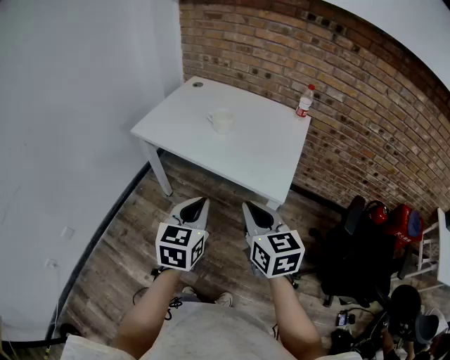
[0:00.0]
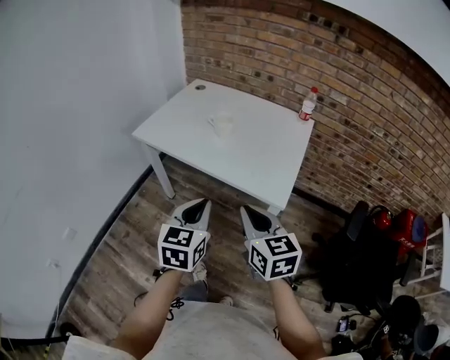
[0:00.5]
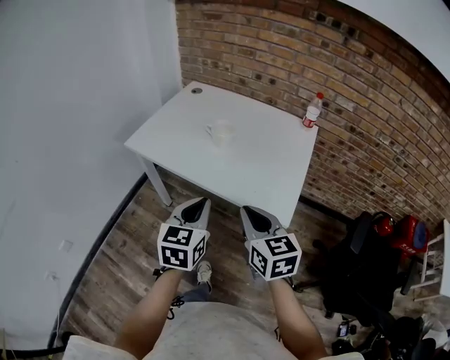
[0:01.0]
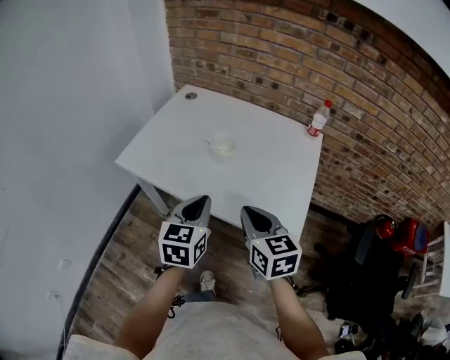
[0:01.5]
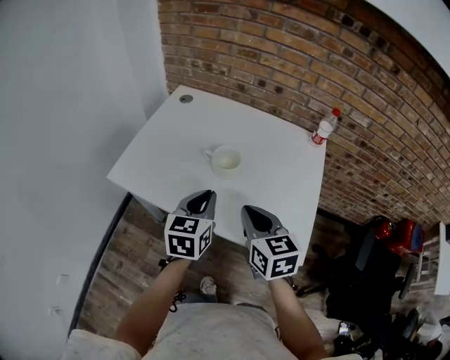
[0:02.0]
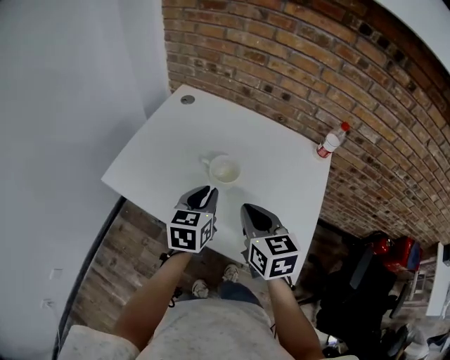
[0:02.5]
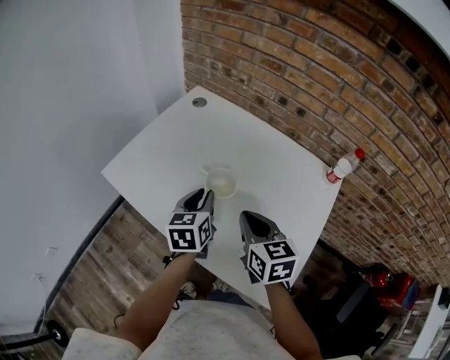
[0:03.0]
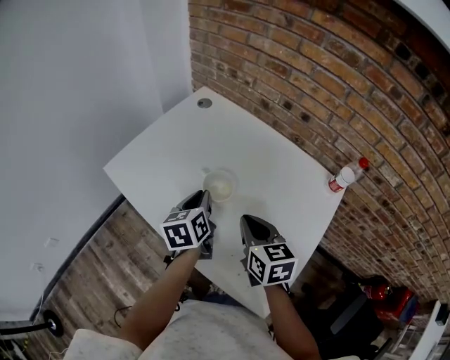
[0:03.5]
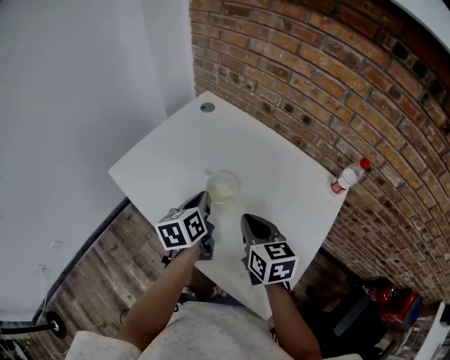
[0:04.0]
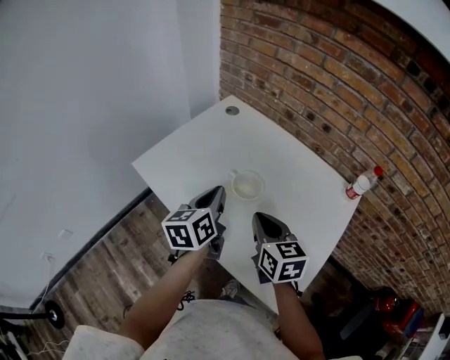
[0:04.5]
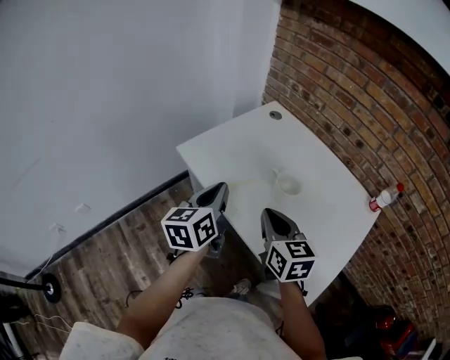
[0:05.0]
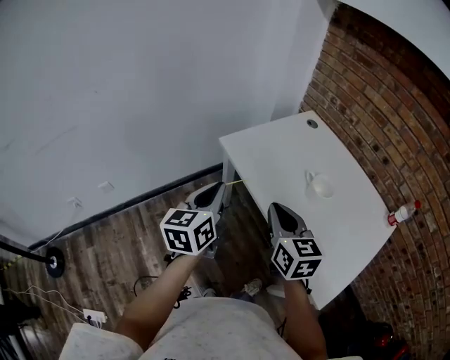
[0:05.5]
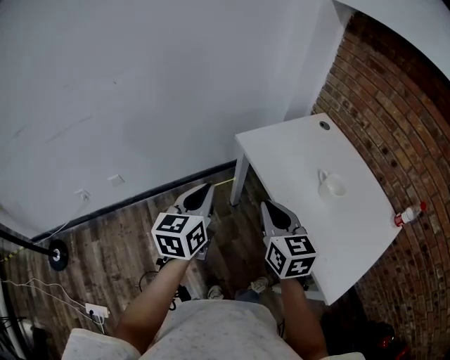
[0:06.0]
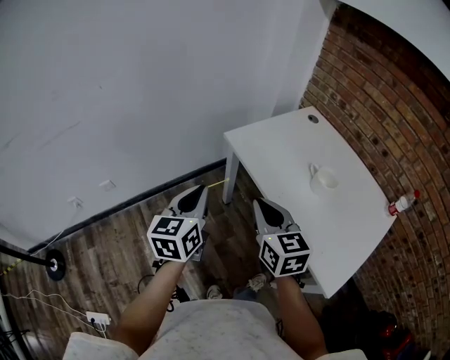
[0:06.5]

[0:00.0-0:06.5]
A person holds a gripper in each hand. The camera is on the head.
0:00.0 to 0:02.0: The grippers both shift forward by about 30 cm.
0:02.0 to 0:04.5: The grippers both shift forward by about 10 cm. The left gripper turns by approximately 30 degrees.
0:04.5 to 0:06.5: The left gripper goes about 40 cm to the left and backward, and changes its angle by some 20 degrees. Meanwhile the right gripper is displaced to the left by roughly 30 cm, and turns by roughly 20 degrees.

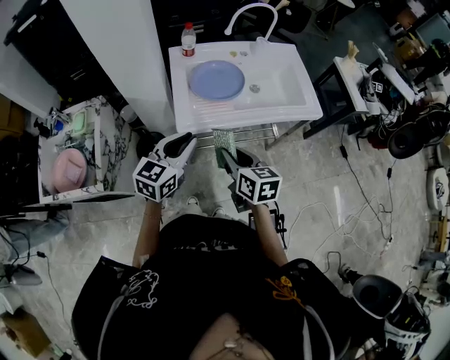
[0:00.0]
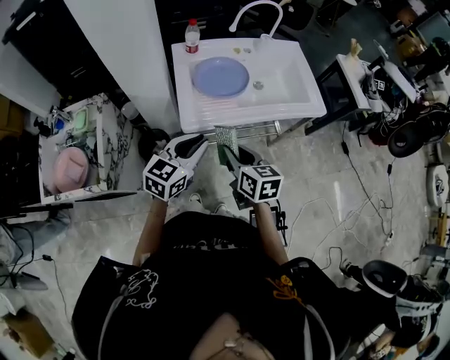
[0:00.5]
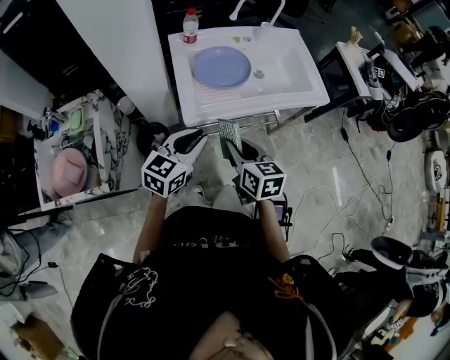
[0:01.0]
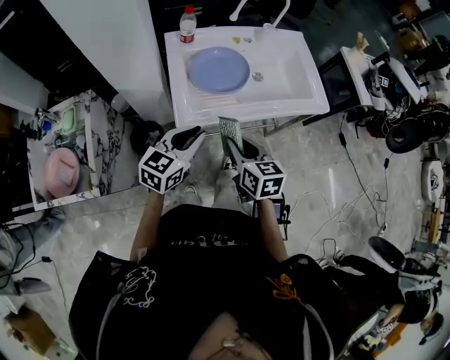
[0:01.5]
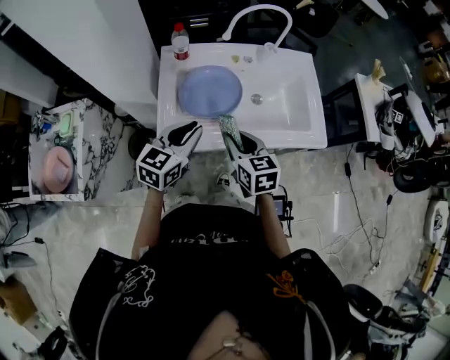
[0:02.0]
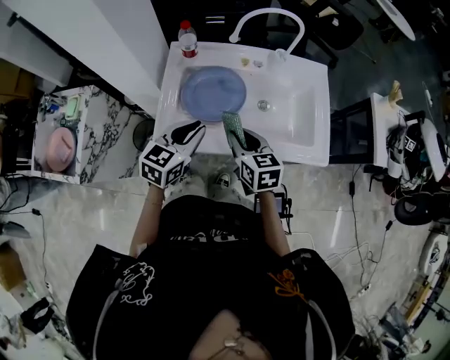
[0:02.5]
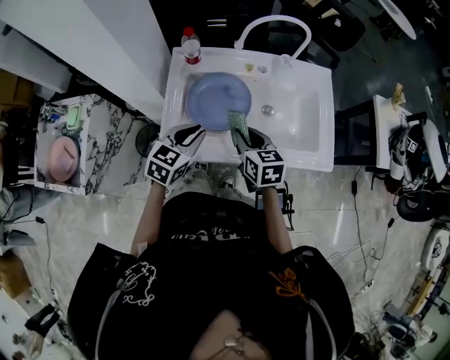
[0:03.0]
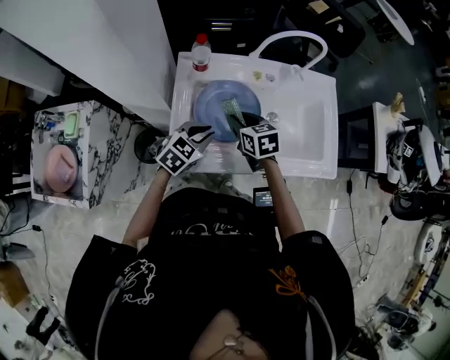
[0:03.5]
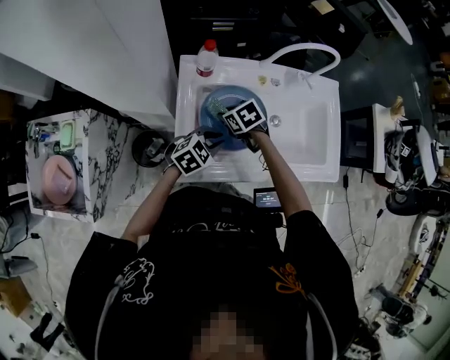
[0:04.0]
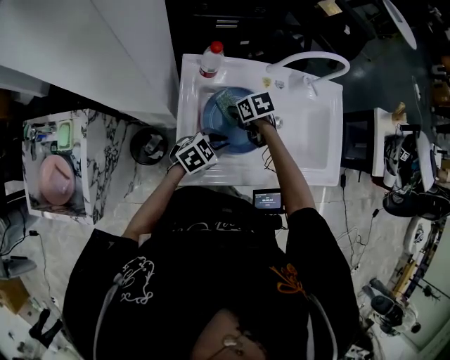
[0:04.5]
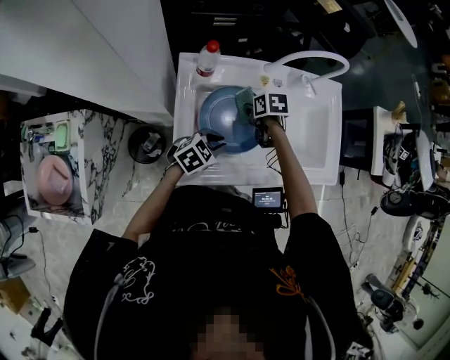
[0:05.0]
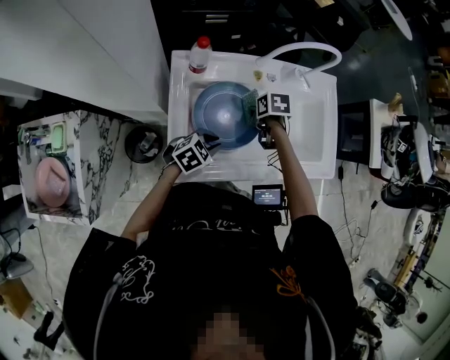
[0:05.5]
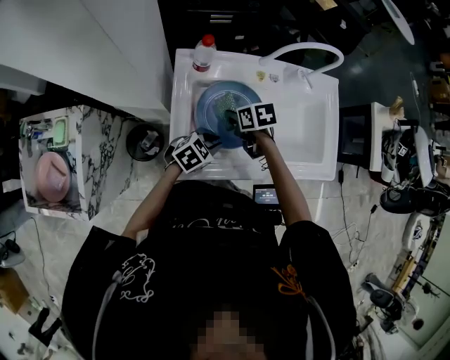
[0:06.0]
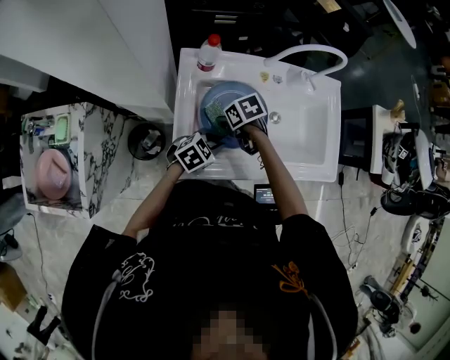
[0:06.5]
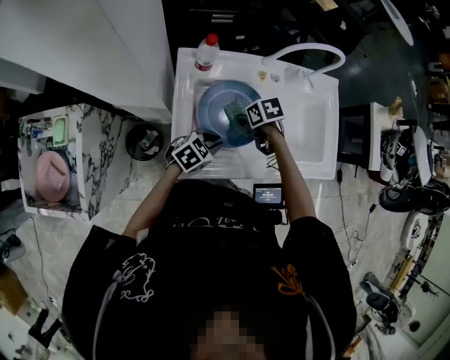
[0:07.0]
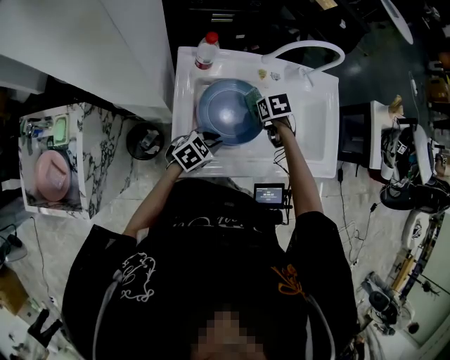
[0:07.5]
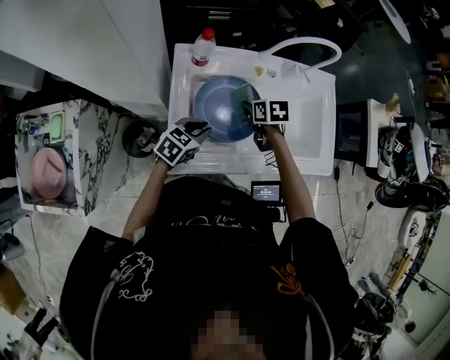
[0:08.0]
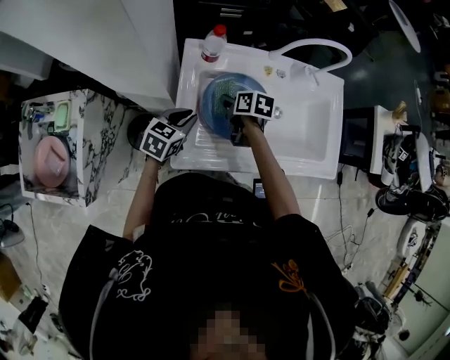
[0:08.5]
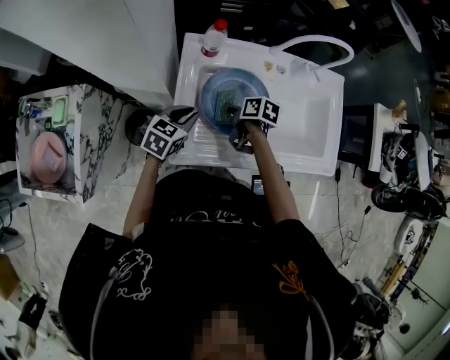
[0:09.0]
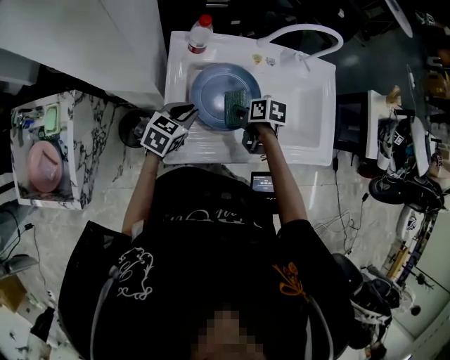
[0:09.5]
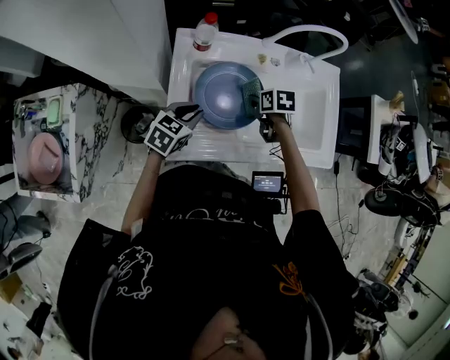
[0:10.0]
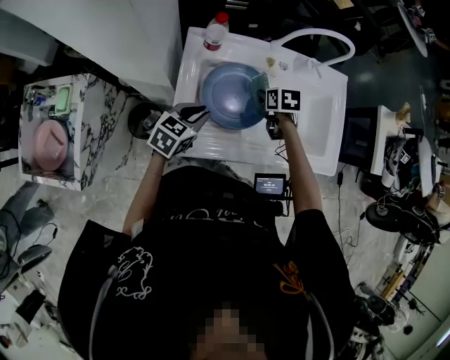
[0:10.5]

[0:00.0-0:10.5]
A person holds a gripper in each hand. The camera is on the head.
0:00.0 to 0:02.0: Both grippers travel together forward, roughly 20 cm.
0:02.0 to 0:04.0: The right gripper moves forward, downward and to the left, about 30 cm, and swivels some 40 degrees; the left gripper moves downward and forward, roughly 20 cm, and rotates some 40 degrees.
0:06.5 to 0:08.5: The right gripper changes its angle by some 30 degrees. Meanwhile the left gripper ends up roughly 15 cm from where it was, and swivels approximately 30 degrees.
0:08.5 to 0:10.5: The left gripper is displaced to the right by some 5 cm, while the right gripper heads to the right, covering approximately 15 cm, and swivels about 20 degrees.

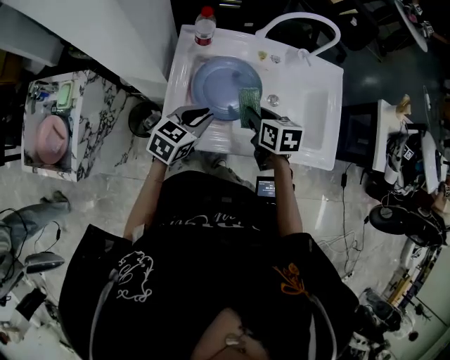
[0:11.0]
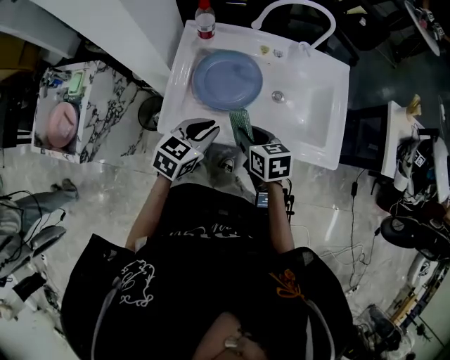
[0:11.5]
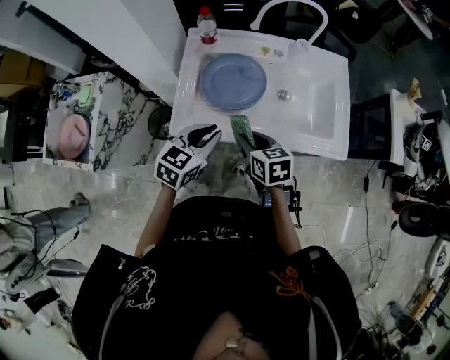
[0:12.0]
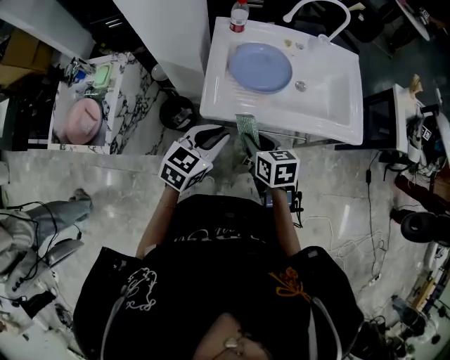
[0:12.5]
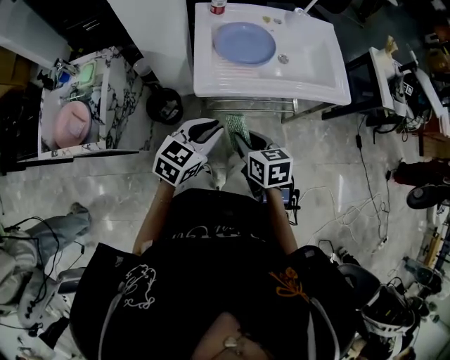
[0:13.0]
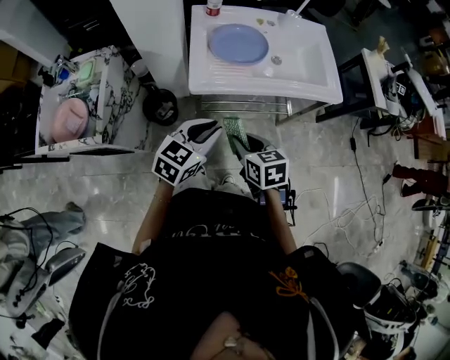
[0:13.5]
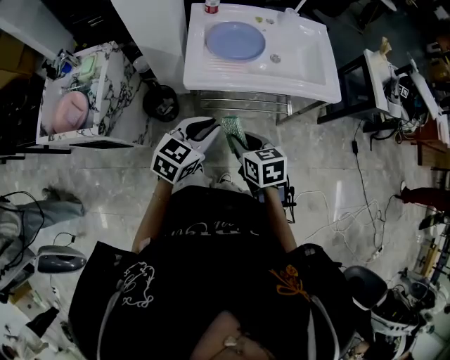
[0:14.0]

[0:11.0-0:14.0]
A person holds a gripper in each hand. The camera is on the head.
0:11.0 to 0:12.5: The left gripper moves backward, some 20 cm. Meanwhile the right gripper moves backward and to the left, about 25 cm.
0:12.5 to 0:14.0: The grippers both shift backward by roughly 15 cm.

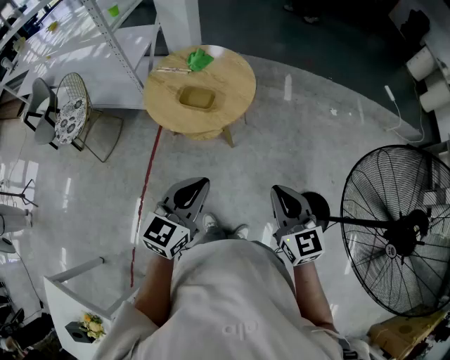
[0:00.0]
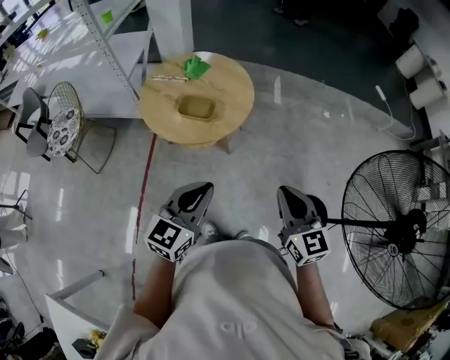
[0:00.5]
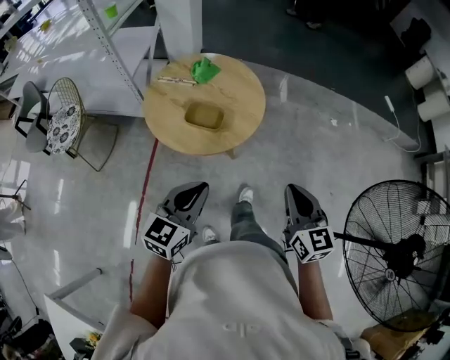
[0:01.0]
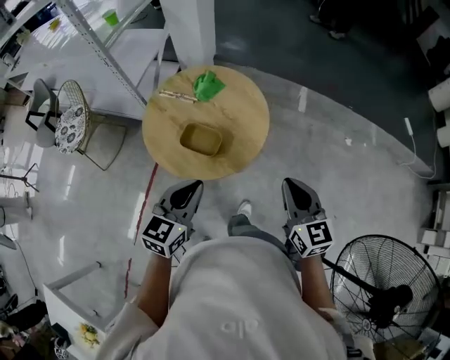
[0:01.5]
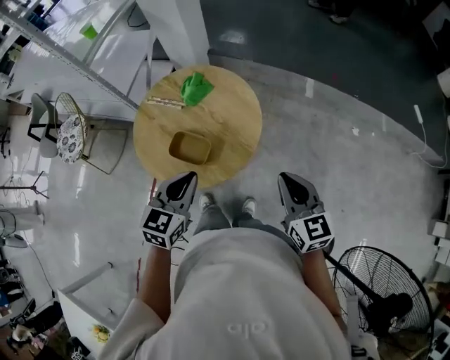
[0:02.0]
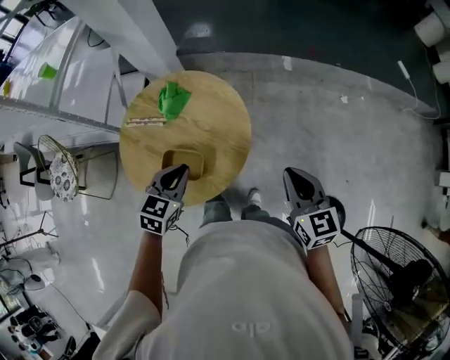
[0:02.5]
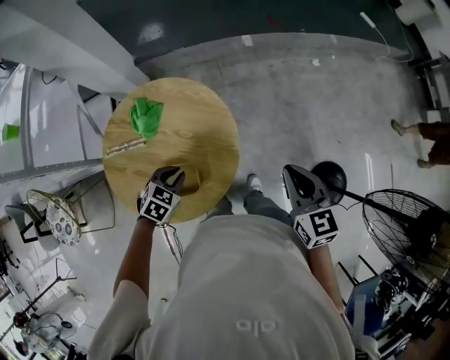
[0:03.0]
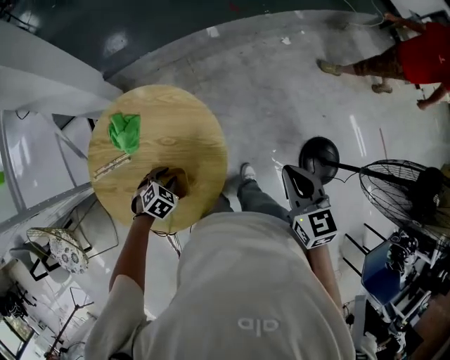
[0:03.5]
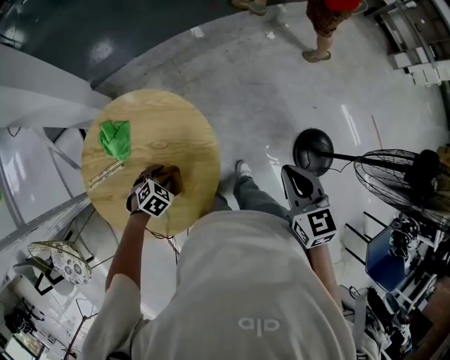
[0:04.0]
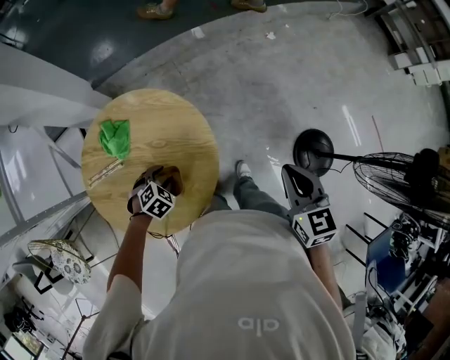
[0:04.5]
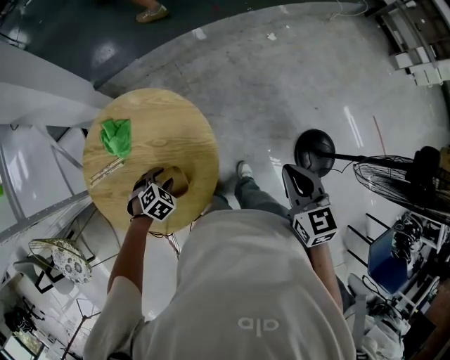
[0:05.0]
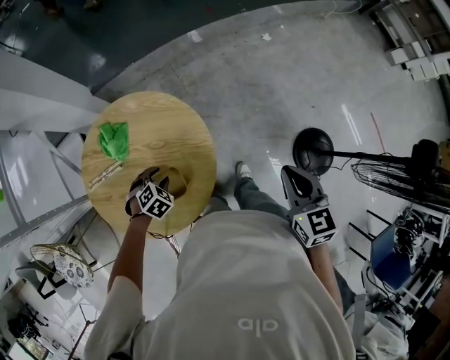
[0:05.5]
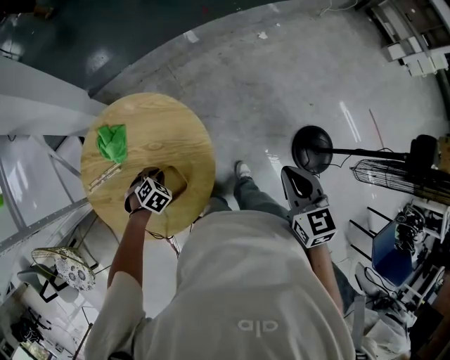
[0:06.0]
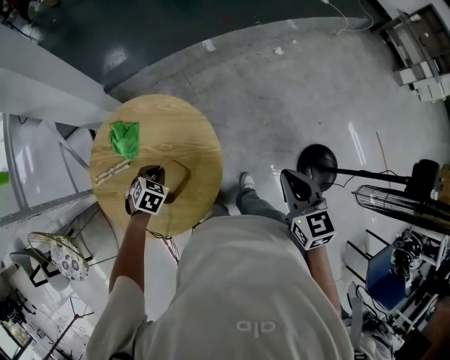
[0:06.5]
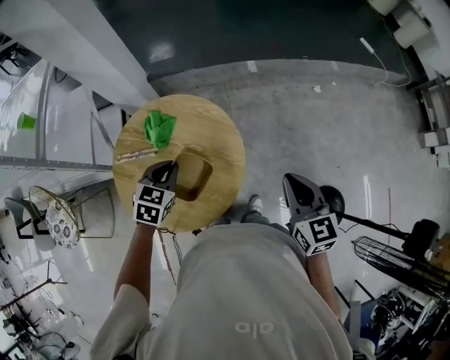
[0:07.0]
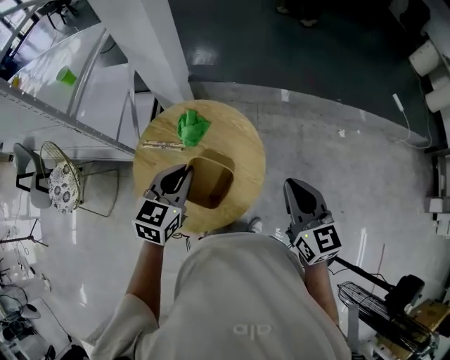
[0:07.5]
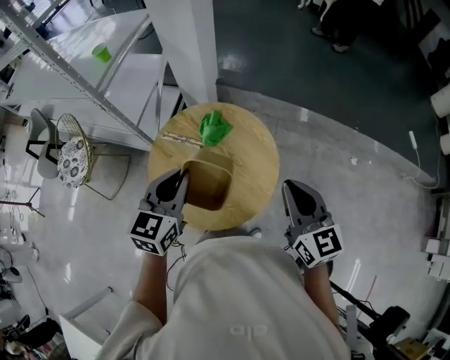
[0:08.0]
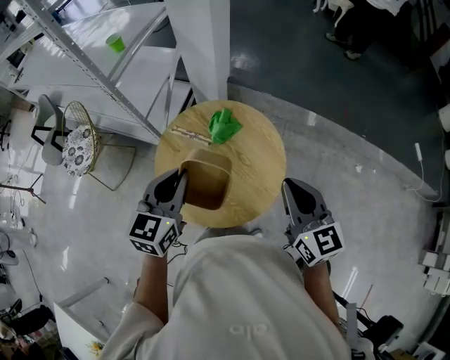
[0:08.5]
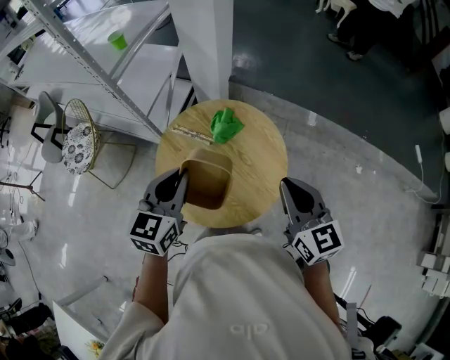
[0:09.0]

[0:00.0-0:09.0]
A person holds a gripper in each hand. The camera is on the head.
0:00.0 to 0:02.0: The two grippers go some 35 cm forward.
0:02.0 to 0:04.5: The right gripper ends up some 5 cm from where it was, and swivels about 40 degrees; the left gripper heads downward, covering roughly 30 cm, angles its fingers downward, by approximately 40 degrees, and opens up.
0:04.5 to 0:07.0: The right gripper travels to the left by roughly 5 cm. Meanwhile the left gripper moves upward, some 20 cm, rotates about 50 degrees, and closes.
0:07.0 to 0:09.0: The left gripper is displaced upward by roughly 15 cm, and swivels some 40 degrees. Meanwhile the right gripper moves about 20 cm, and swivels roughly 30 degrees.
